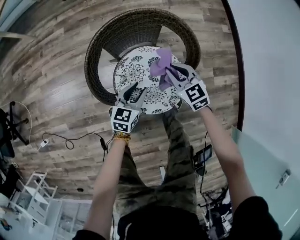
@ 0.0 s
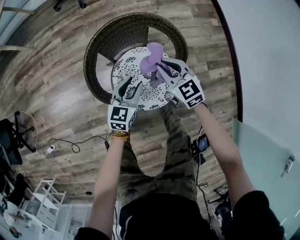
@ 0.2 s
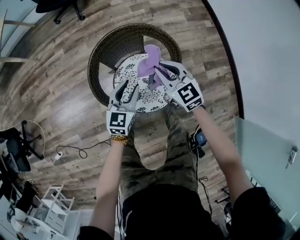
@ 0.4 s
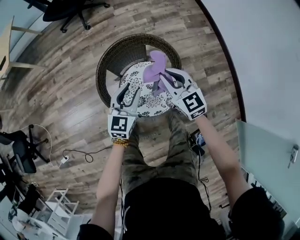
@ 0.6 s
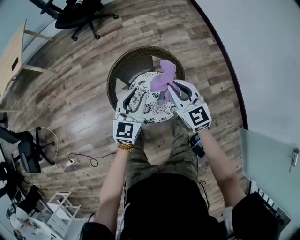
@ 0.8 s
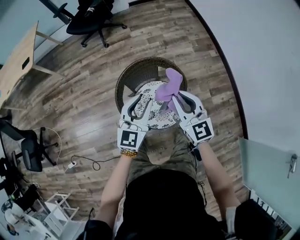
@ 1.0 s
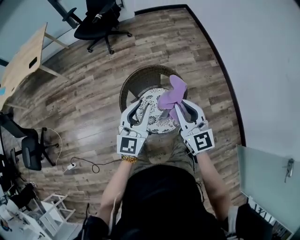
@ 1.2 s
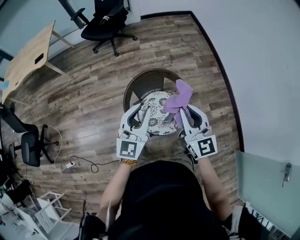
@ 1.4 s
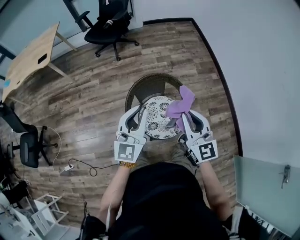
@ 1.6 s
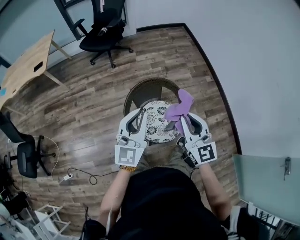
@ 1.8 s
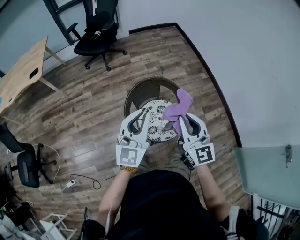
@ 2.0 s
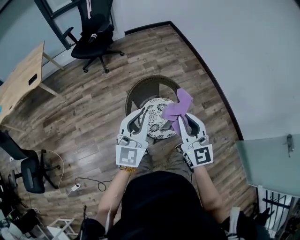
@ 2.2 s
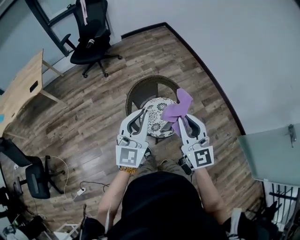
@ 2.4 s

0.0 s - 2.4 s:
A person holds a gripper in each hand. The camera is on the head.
0.0 s - 1.2 s: The grippers both shift upward by some 50 cm. The left gripper rotates some 30 degrees. The right gripper tilts its fingers approximately 30 degrees upward.
1.2 s - 2.4 s: The right gripper heads backward, upward and to the left, covering approximately 20 cm. The left gripper heads upward, backward and to the left, covering about 20 cm.

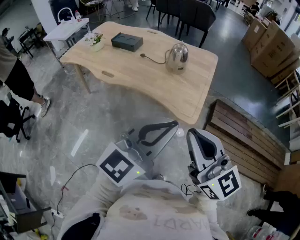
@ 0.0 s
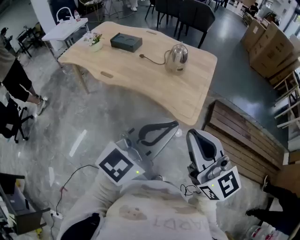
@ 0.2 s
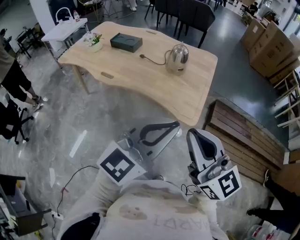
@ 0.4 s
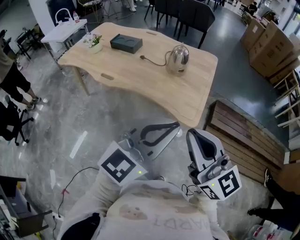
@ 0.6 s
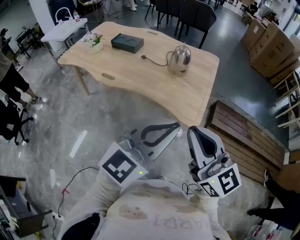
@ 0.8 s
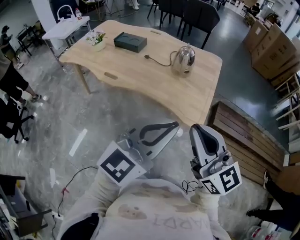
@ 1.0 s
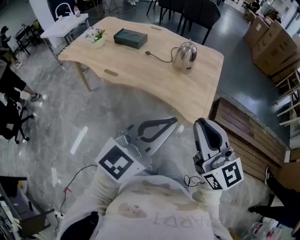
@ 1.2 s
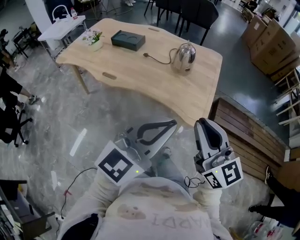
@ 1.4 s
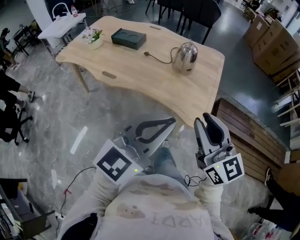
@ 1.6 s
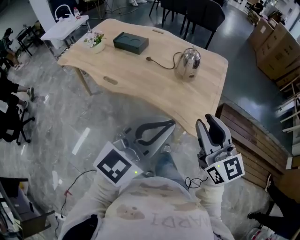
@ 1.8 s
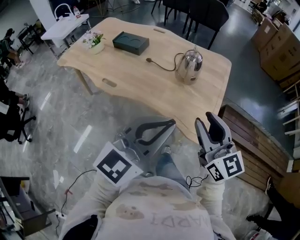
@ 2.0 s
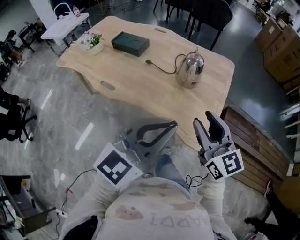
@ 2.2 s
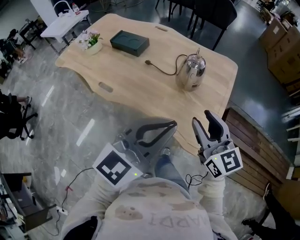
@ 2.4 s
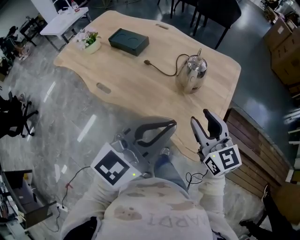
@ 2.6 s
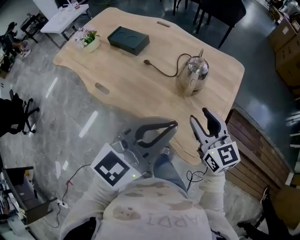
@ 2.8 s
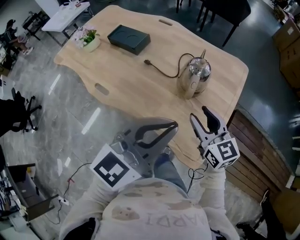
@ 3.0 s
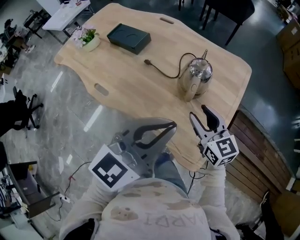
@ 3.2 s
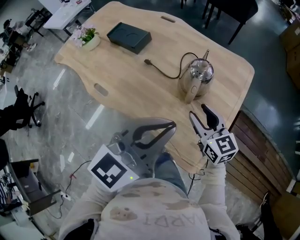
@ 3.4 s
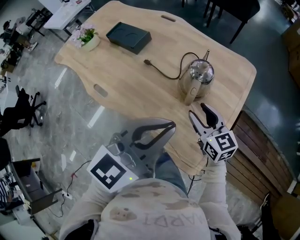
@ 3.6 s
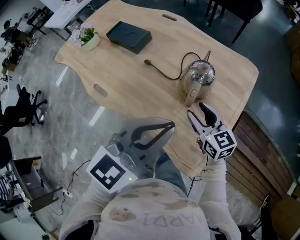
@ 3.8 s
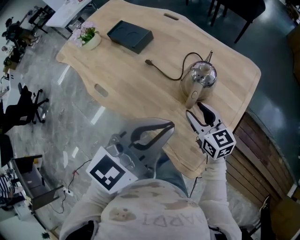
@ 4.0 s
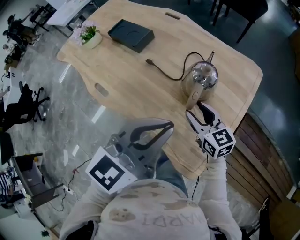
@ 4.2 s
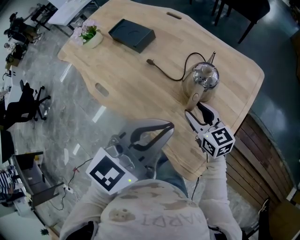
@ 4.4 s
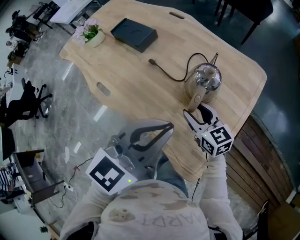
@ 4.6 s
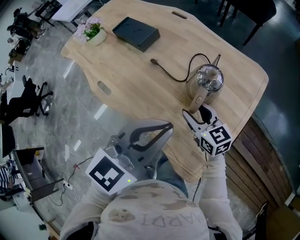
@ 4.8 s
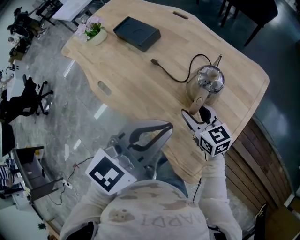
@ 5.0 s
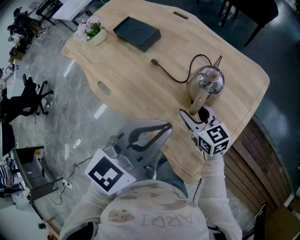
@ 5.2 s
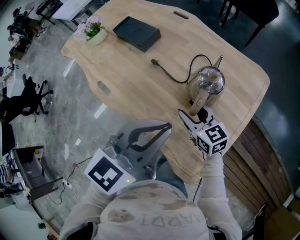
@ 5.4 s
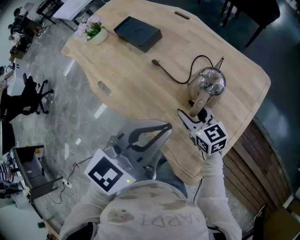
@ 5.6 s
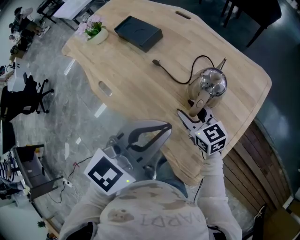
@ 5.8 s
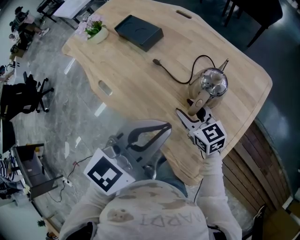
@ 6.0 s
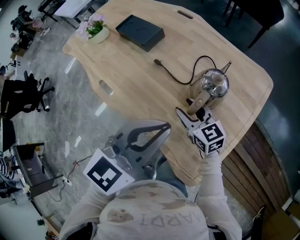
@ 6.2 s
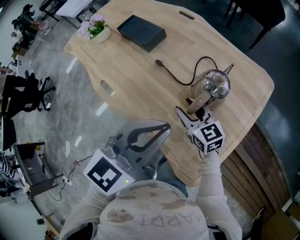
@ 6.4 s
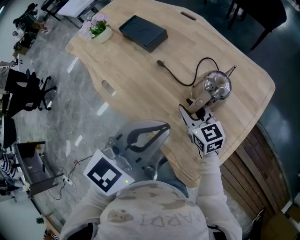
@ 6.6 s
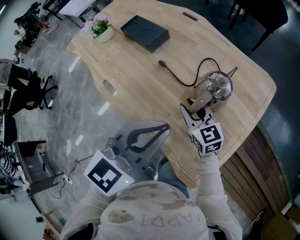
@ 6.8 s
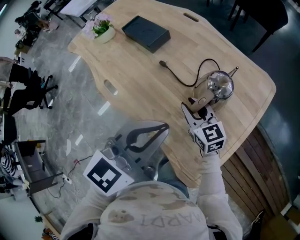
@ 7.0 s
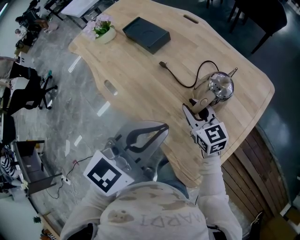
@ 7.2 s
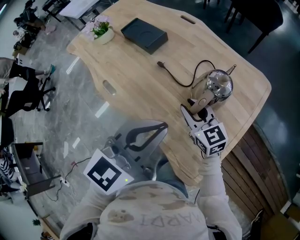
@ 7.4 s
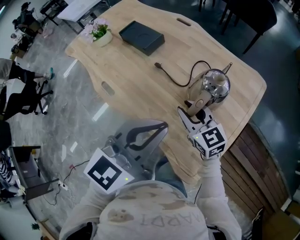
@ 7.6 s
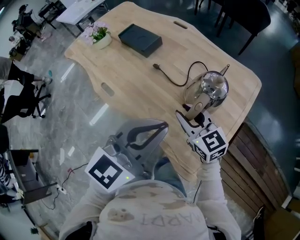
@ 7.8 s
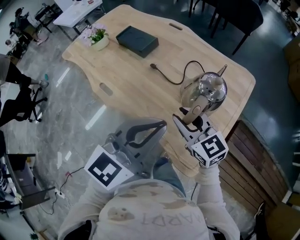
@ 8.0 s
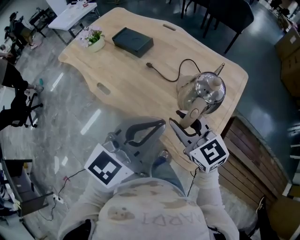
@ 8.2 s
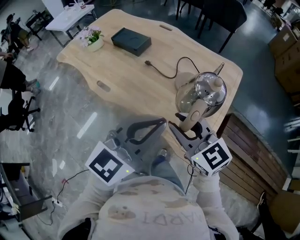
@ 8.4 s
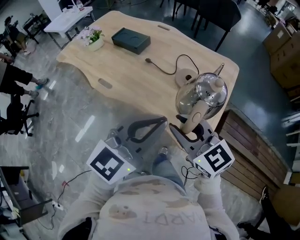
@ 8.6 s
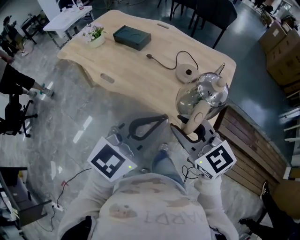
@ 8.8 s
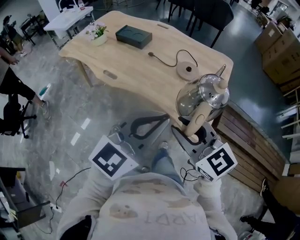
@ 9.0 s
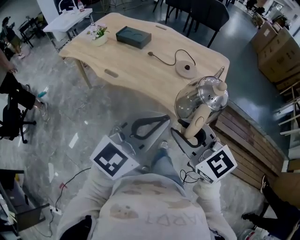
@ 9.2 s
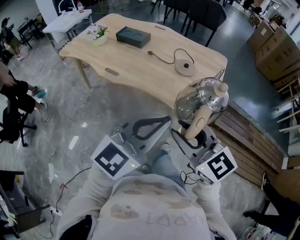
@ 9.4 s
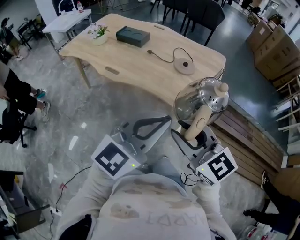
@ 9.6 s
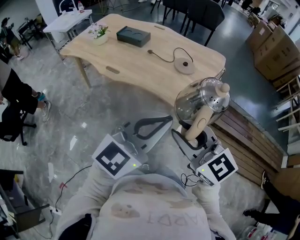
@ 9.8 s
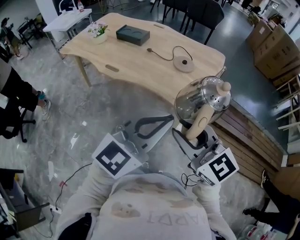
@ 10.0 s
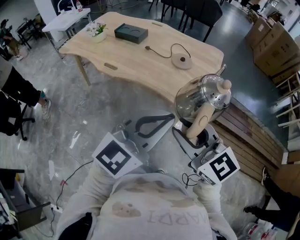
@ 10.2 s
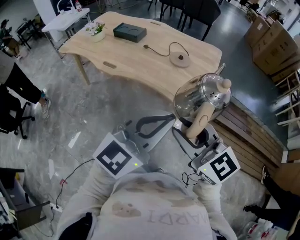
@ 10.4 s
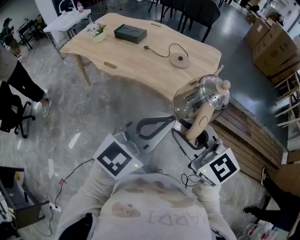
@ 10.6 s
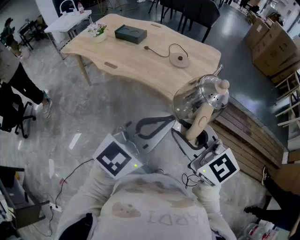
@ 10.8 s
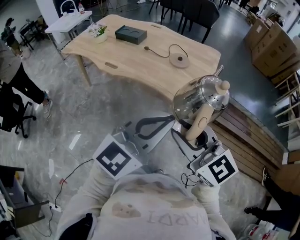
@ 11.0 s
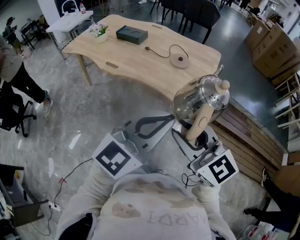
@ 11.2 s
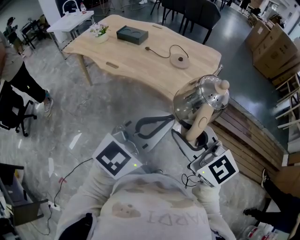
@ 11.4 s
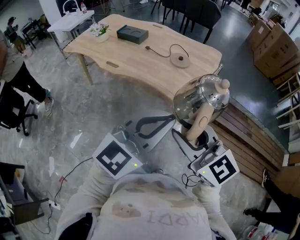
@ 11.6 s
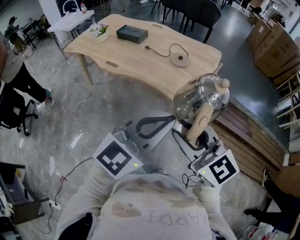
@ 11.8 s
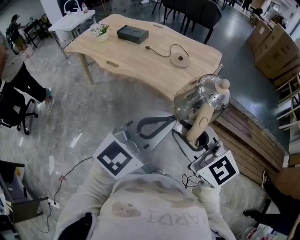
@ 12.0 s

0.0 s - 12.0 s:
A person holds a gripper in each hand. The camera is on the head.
0.0 s - 1.6 s: The left gripper travels to the left and forward by about 10 cm; the right gripper moves forward, about 10 cm.
1.6 s - 3.0 s: The left gripper goes roughly 25 cm forward. The right gripper heads forward and downward, covering approximately 35 cm, and opens.
3.0 s - 4.4 s: The right gripper travels downward and forward by some 15 cm. Meanwhile the left gripper is displaced forward by some 10 cm.
4.4 s - 6.0 s: The right gripper goes some 5 cm to the left.
6.0 s - 7.6 s: The right gripper is displaced upward by about 5 cm.
7.6 s - 9.0 s: The right gripper goes some 35 cm backward and upward. Meanwhile the left gripper is displaced backward by roughly 25 cm.
9.0 s - 10.4 s: The grippers both shift backward by some 10 cm.
10.4 s - 12.0 s: Both grippers move backward and to the right, about 10 cm.

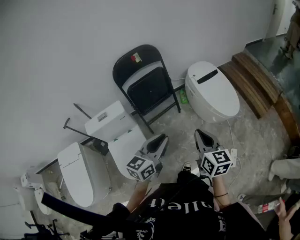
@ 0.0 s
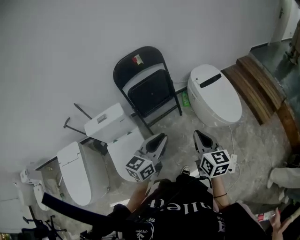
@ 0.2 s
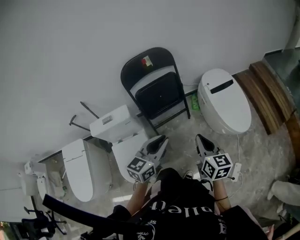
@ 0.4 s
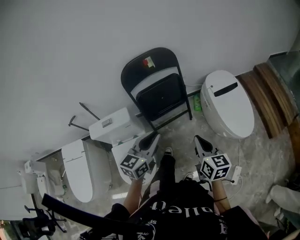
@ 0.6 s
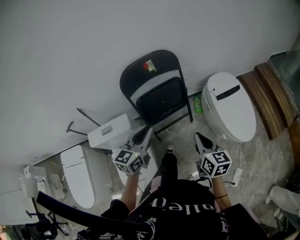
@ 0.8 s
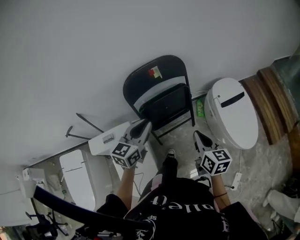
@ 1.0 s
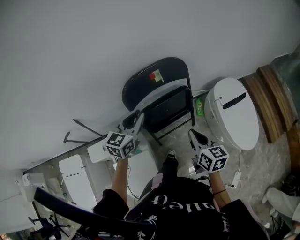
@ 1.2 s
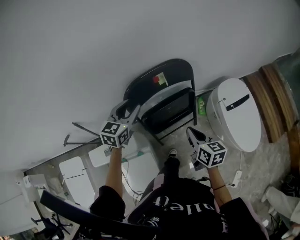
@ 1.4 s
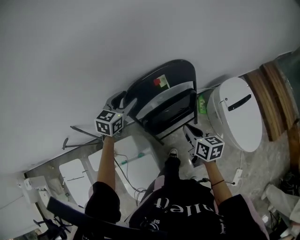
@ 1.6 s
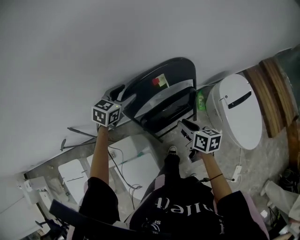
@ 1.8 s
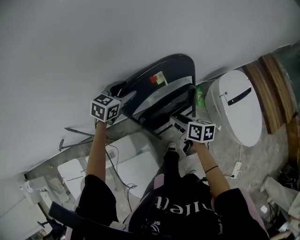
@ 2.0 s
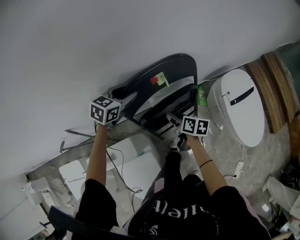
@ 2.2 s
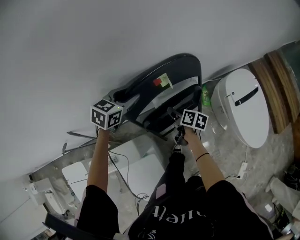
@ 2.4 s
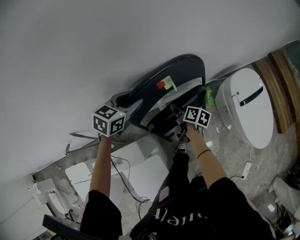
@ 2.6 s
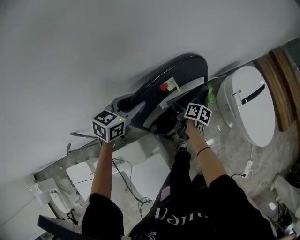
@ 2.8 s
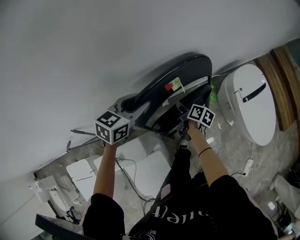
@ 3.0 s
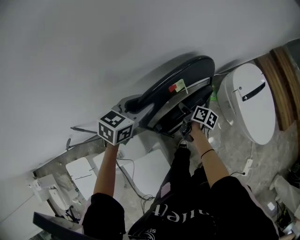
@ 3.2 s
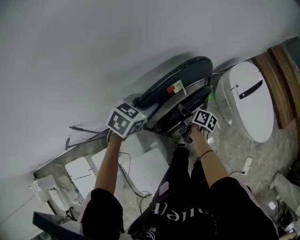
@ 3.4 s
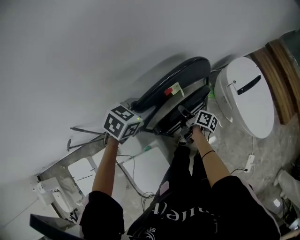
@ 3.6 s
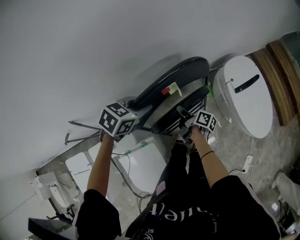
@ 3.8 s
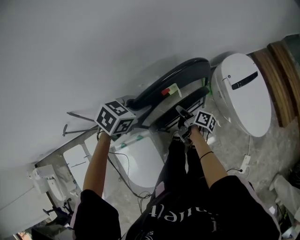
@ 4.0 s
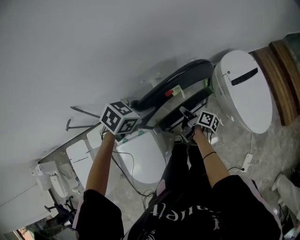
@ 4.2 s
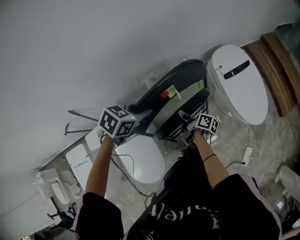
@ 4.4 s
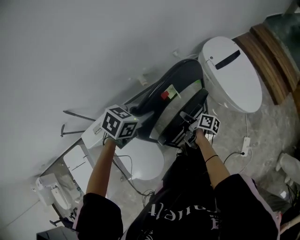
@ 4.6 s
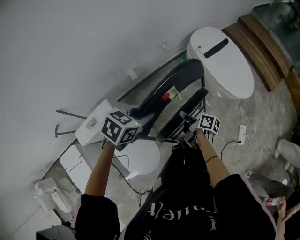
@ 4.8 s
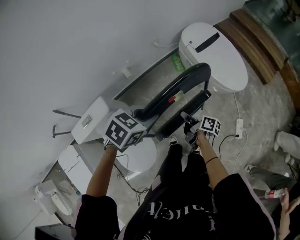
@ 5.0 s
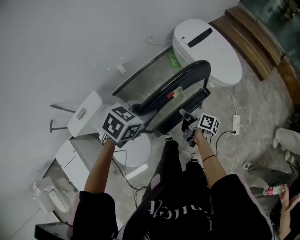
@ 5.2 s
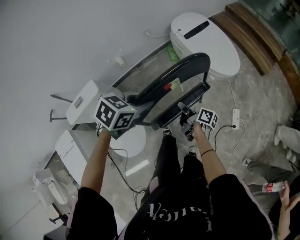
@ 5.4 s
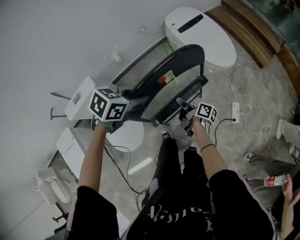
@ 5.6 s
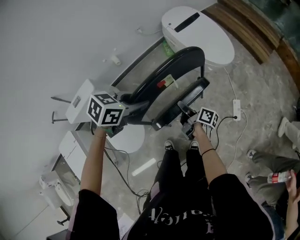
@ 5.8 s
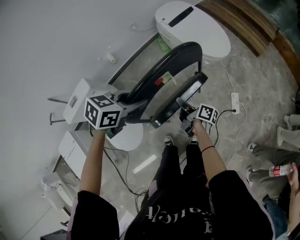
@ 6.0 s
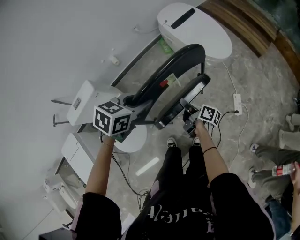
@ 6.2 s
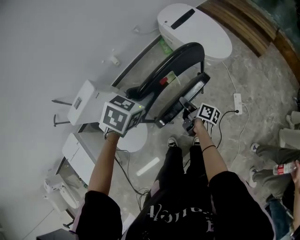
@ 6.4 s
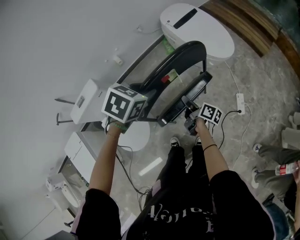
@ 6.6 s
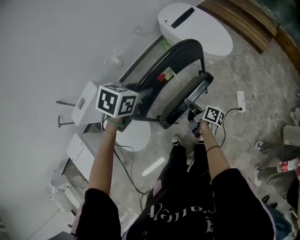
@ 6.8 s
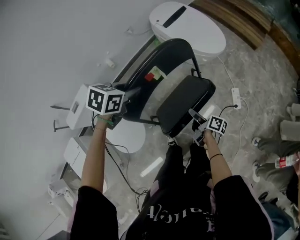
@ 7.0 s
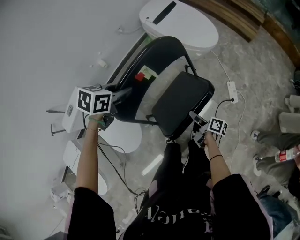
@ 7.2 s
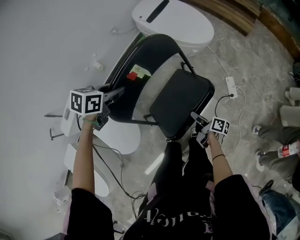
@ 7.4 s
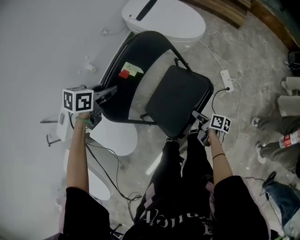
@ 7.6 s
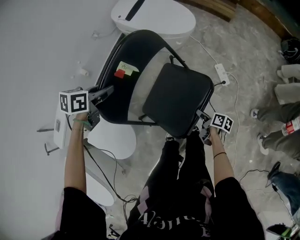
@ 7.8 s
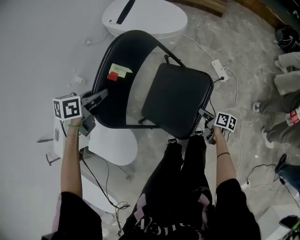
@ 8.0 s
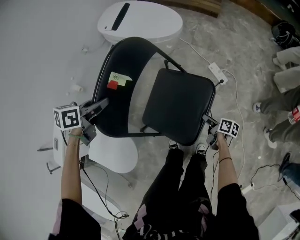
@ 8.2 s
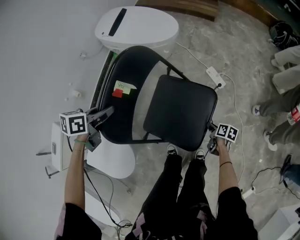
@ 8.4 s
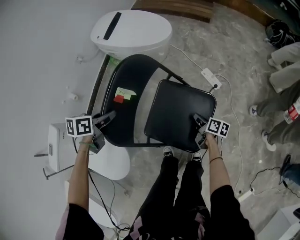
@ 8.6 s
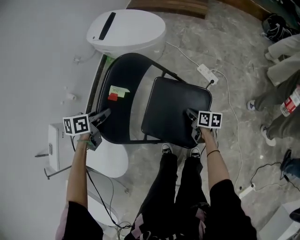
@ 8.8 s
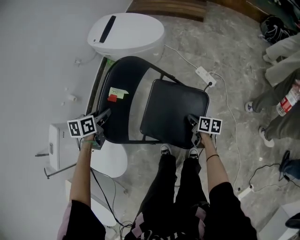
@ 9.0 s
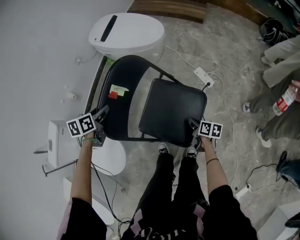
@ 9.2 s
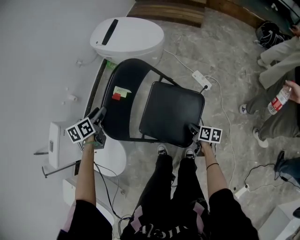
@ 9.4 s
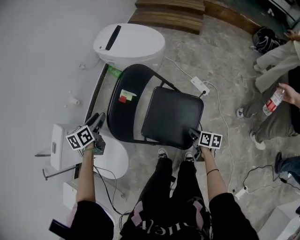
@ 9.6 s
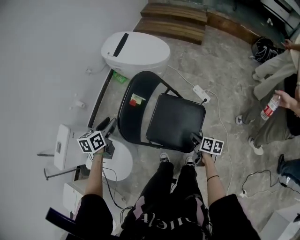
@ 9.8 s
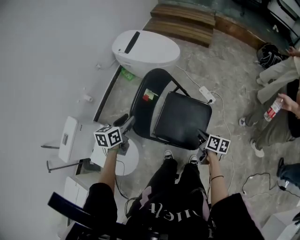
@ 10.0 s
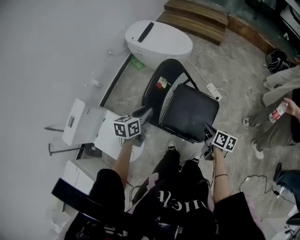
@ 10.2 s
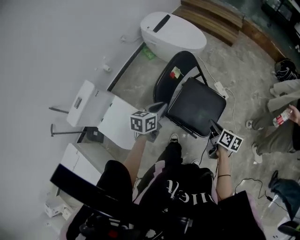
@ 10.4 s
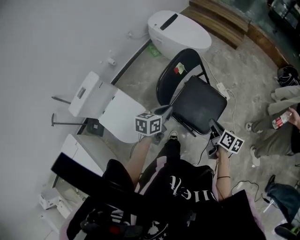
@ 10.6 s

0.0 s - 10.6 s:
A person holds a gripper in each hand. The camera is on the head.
0.0 s - 1.6 s: The pair of grippers is taken forward and to the left, about 60 cm. The right gripper rotates approximately 30 degrees; the left gripper changes its angle by roughly 30 degrees, and opens its fingers.
1.6 s - 3.0 s: The right gripper goes about 20 cm downward and forward, changes its angle by roughly 40 degrees, and opens its fingers.
3.0 s - 4.6 s: Both grippers travel together backward and to the right, some 30 cm. The left gripper swivels approximately 20 degrees, and closes up.
4.6 s - 6.0 s: The grippers both shift to the right and backward by some 35 cm.
6.0 s - 7.6 s: The right gripper travels to the right, backward and downward by approximately 25 cm, and opens; the left gripper goes some 5 cm downward.
7.6 s - 9.0 s: The right gripper heads to the right and downward, covering about 10 cm, and closes. Meanwhile the left gripper is displaced downward and to the right by approximately 15 cm.
9.0 s - 10.6 s: The right gripper shifts about 35 cm upward and backward. The left gripper is displaced backward and upward by some 25 cm, swivels approximately 20 degrees, and closes its fingers.
